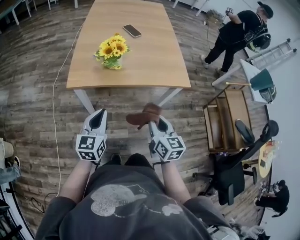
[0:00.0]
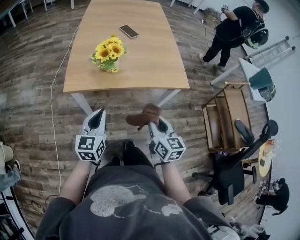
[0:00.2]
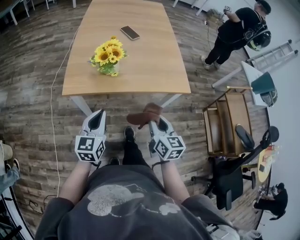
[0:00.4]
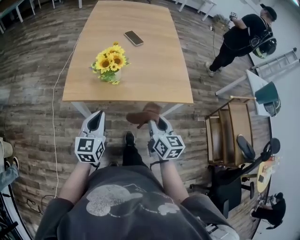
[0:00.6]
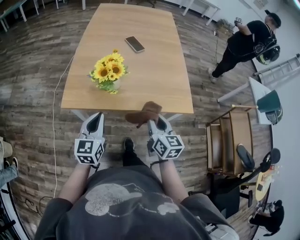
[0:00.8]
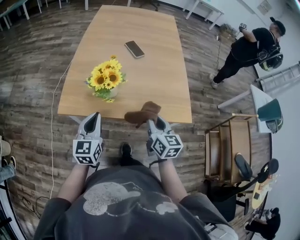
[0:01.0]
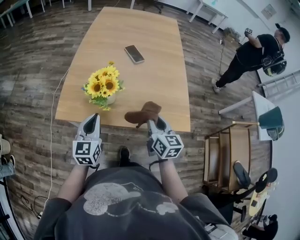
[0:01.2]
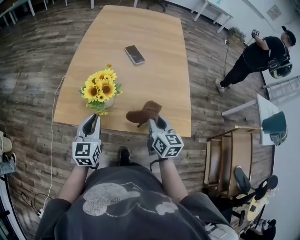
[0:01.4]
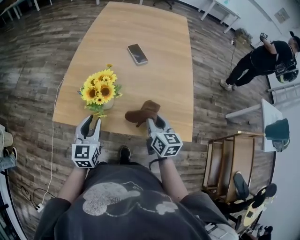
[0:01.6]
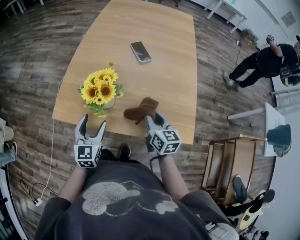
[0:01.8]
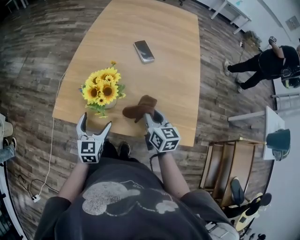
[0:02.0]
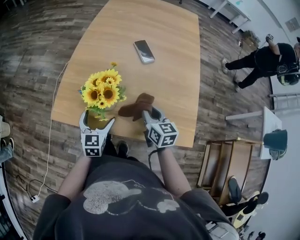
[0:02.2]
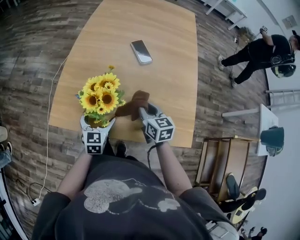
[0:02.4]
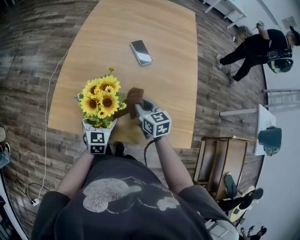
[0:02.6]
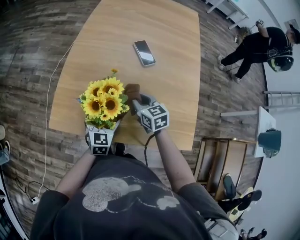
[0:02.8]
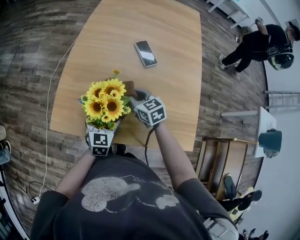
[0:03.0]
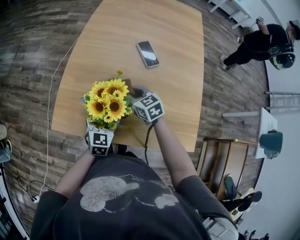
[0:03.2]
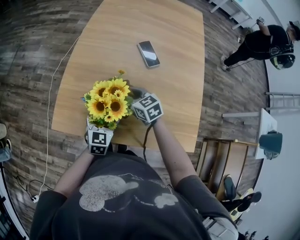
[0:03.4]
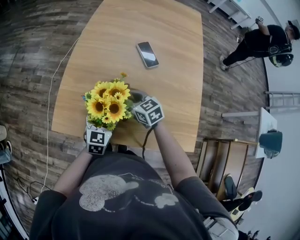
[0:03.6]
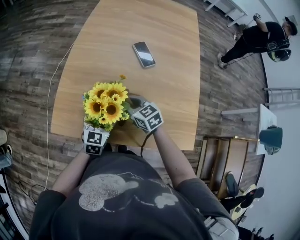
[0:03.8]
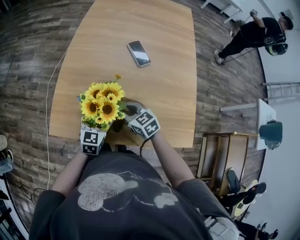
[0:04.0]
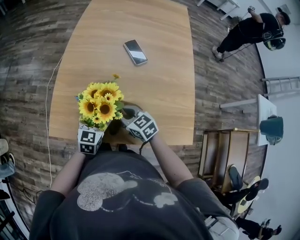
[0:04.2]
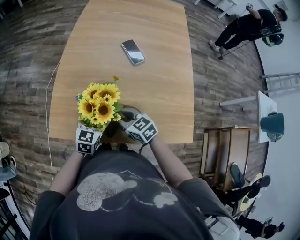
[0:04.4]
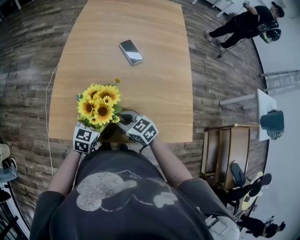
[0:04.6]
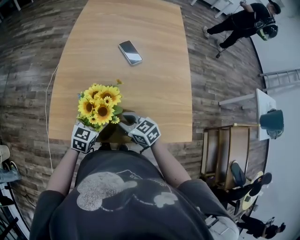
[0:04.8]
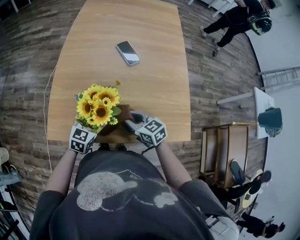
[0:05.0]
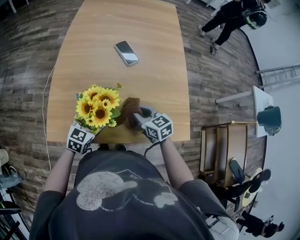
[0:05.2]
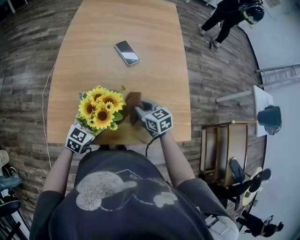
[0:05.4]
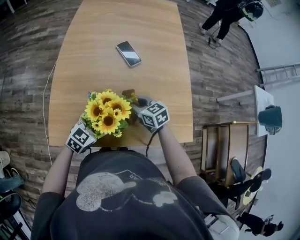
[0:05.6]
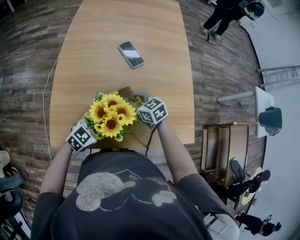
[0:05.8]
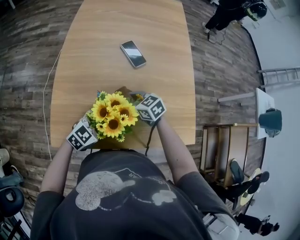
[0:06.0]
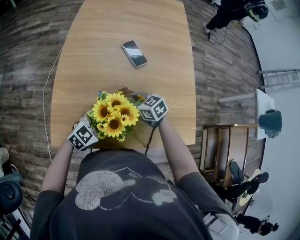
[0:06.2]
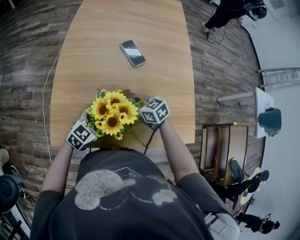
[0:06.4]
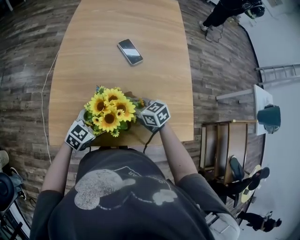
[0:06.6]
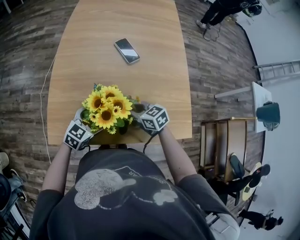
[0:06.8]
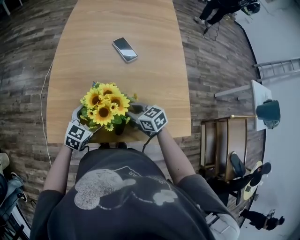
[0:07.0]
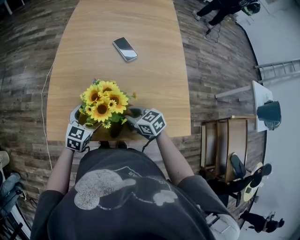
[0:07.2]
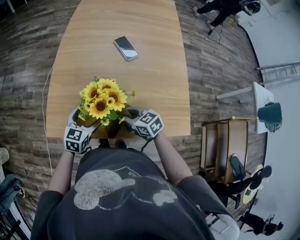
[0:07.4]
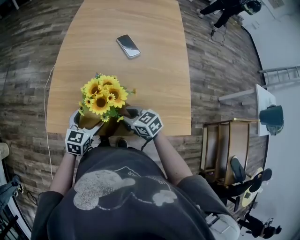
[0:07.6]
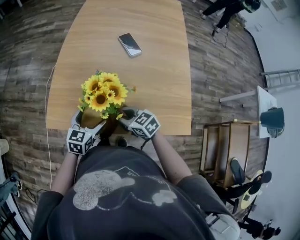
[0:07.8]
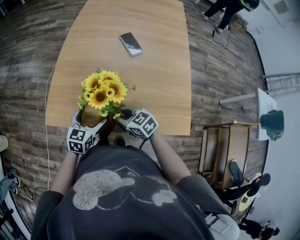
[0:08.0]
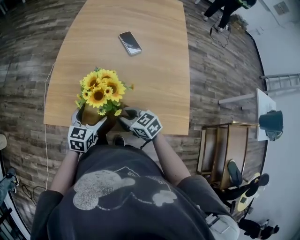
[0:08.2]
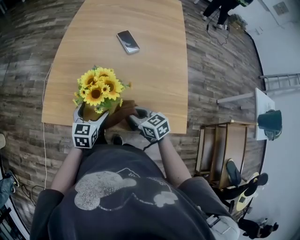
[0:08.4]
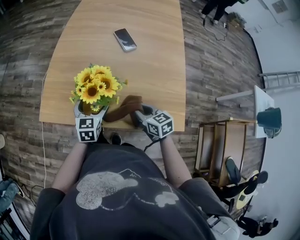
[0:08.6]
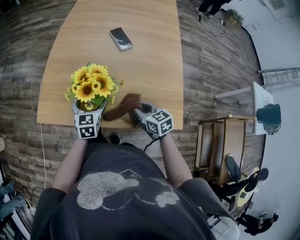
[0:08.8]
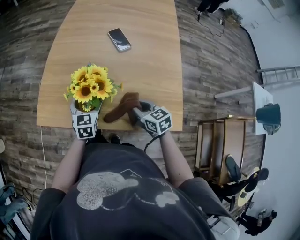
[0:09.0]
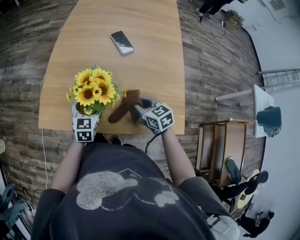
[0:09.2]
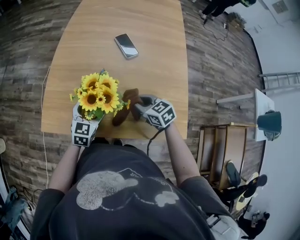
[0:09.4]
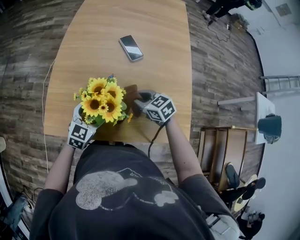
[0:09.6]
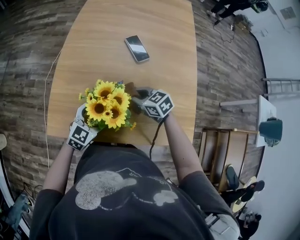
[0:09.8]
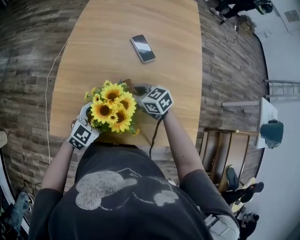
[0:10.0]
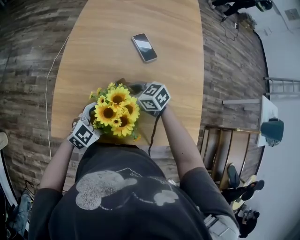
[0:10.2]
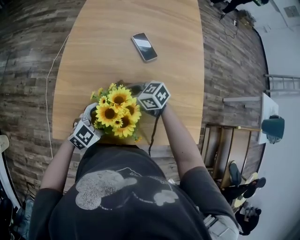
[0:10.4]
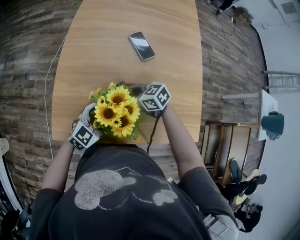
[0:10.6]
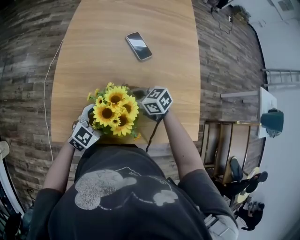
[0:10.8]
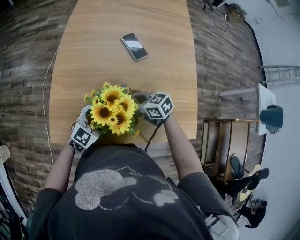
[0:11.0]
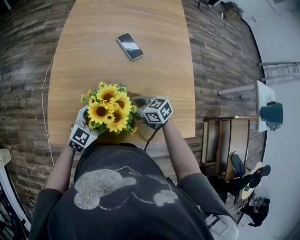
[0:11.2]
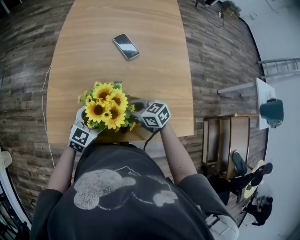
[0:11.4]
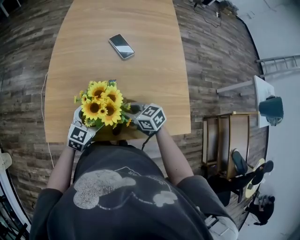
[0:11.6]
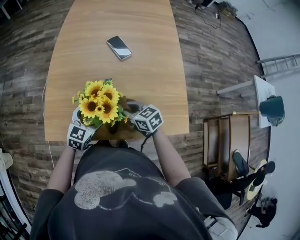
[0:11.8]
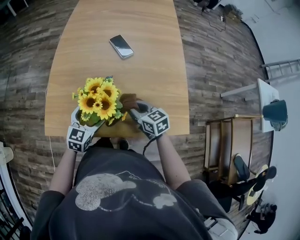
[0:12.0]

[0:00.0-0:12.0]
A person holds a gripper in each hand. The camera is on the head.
0:00.0 to 0:01.6: Both grippers travel together forward, roughly 25 cm.
0:01.6 to 0:03.0: The left gripper goes some 15 cm downward and forward, and opens, while the right gripper travels forward and to the left by roughly 20 cm, and rotates approximately 30 degrees.
0:03.0 to 0:04.4: The right gripper goes some 10 cm backward and to the left.
0:04.4 to 0:06.0: The right gripper shifts by roughly 10 cm. Meanwhile the left gripper turns by some 40 degrees.
0:06.0 to 0:07.6: The left gripper changes place by roughly 5 cm, and rotates some 40 degrees. Meanwhile the right gripper shifts by some 15 cm.
0:07.6 to 0:09.0: The right gripper travels to the right by roughly 10 cm. Meanwhile the left gripper shifts by approximately 5 cm.
0:09.0 to 0:10.4: The right gripper moves some 20 cm, and rotates about 30 degrees. Meanwhile the left gripper rotates some 50 degrees.
0:10.4 to 0:12.0: The left gripper rotates some 30 degrees; the right gripper changes place by some 15 cm, and rotates roughly 30 degrees.

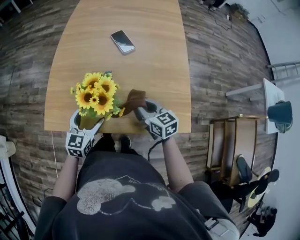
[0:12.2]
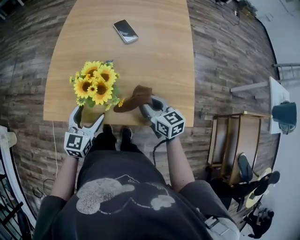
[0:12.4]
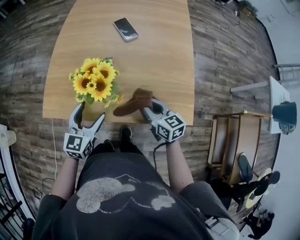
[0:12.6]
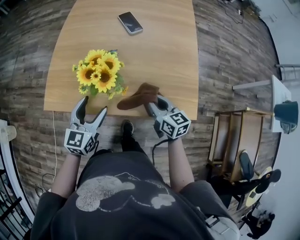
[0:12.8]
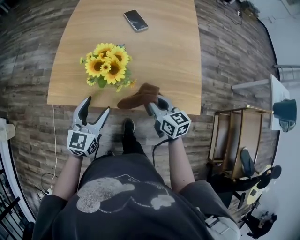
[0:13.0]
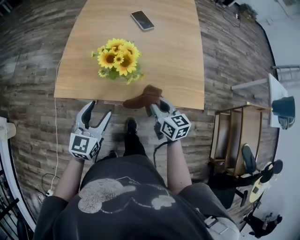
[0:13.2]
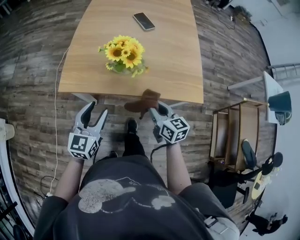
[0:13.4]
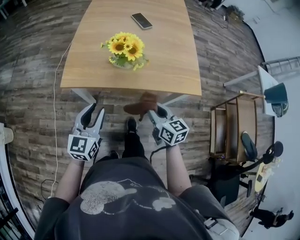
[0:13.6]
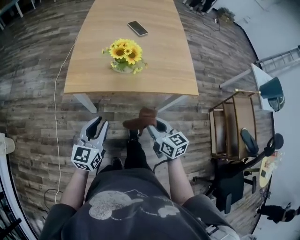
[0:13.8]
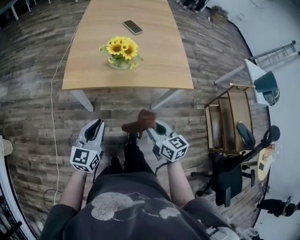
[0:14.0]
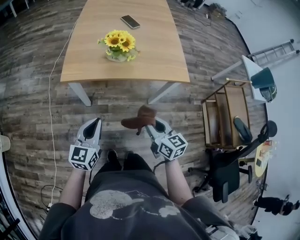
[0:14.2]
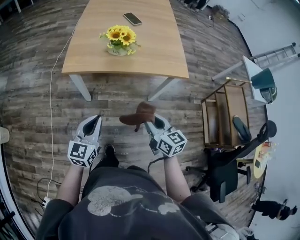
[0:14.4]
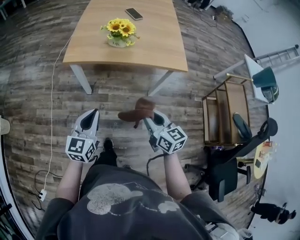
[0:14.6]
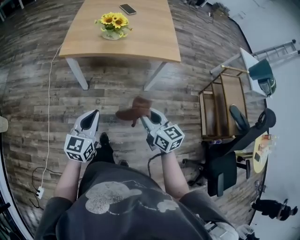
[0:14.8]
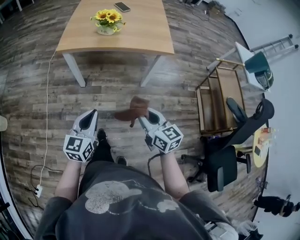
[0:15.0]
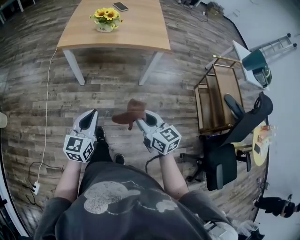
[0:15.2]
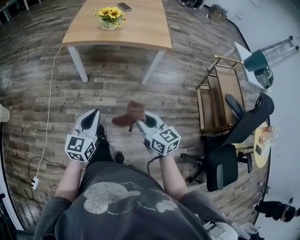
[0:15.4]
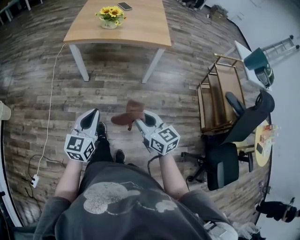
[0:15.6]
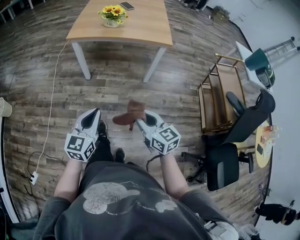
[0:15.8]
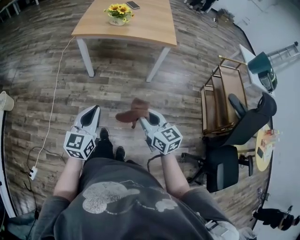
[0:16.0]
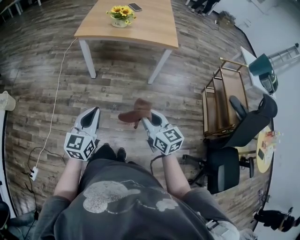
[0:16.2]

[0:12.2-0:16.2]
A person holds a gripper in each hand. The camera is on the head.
0:12.2 to 0:13.6: The right gripper shifts approximately 20 cm backward, while the left gripper is displaced backward and to the left by about 20 cm, and closes.
0:13.6 to 0:14.8: Both grippers travel together backward, approximately 25 cm.
0:14.8 to 0:16.2: The grippers both shift backward by some 20 cm.

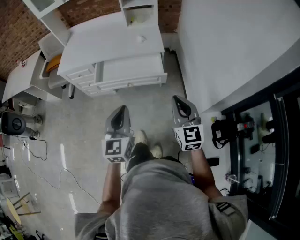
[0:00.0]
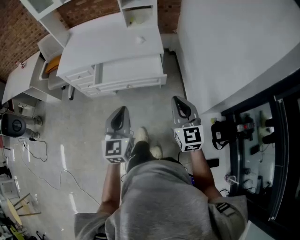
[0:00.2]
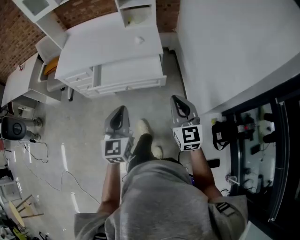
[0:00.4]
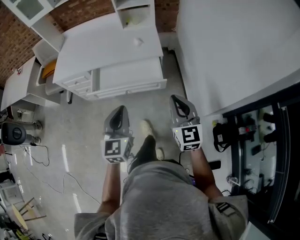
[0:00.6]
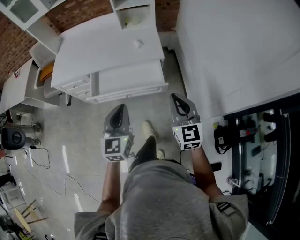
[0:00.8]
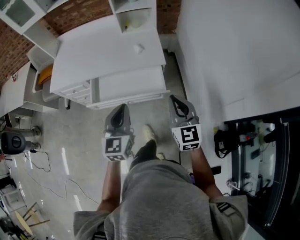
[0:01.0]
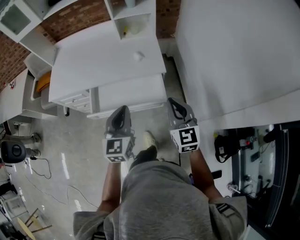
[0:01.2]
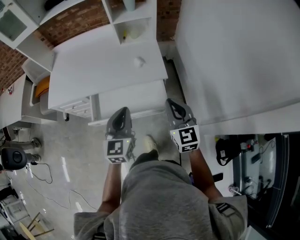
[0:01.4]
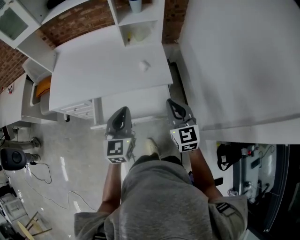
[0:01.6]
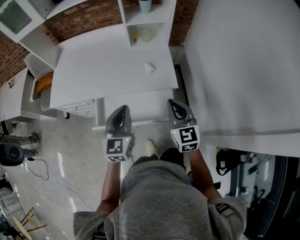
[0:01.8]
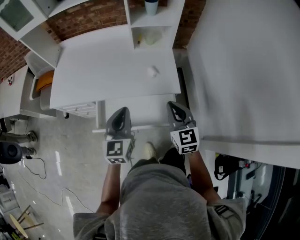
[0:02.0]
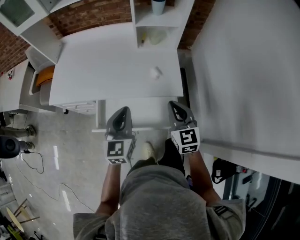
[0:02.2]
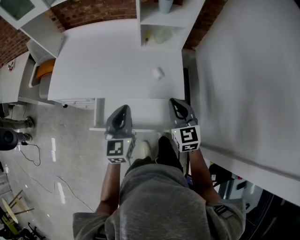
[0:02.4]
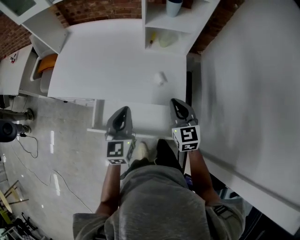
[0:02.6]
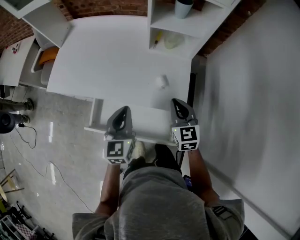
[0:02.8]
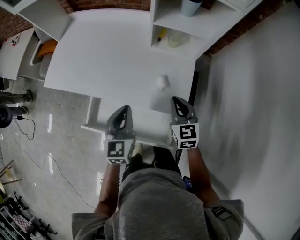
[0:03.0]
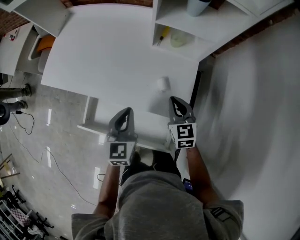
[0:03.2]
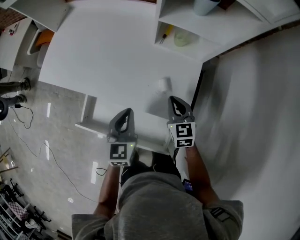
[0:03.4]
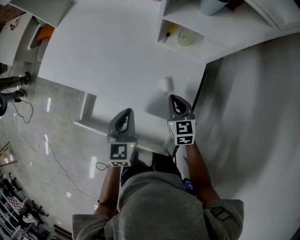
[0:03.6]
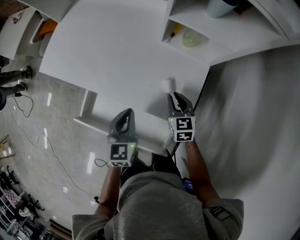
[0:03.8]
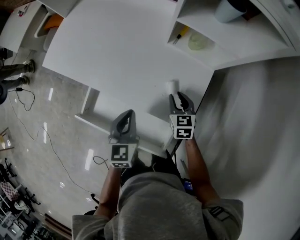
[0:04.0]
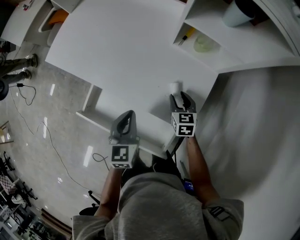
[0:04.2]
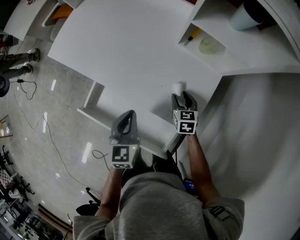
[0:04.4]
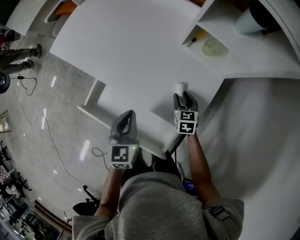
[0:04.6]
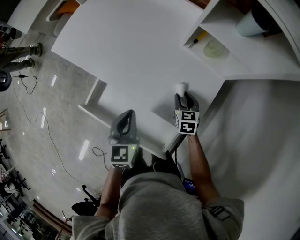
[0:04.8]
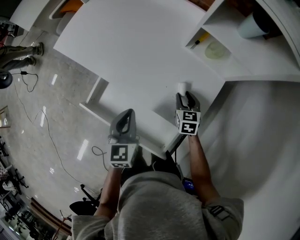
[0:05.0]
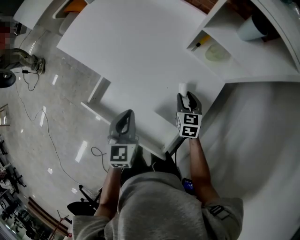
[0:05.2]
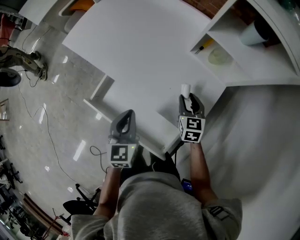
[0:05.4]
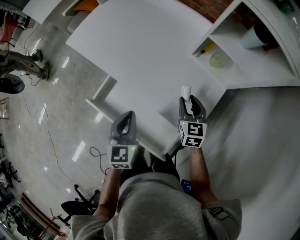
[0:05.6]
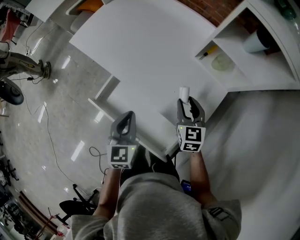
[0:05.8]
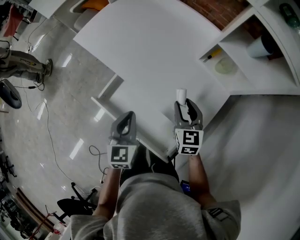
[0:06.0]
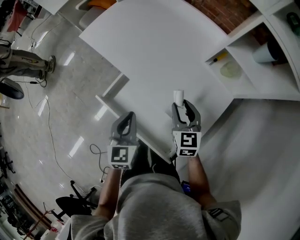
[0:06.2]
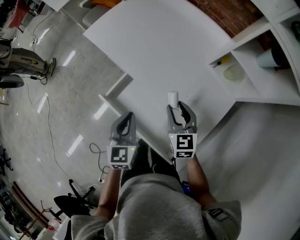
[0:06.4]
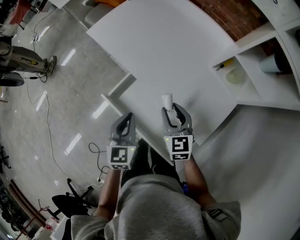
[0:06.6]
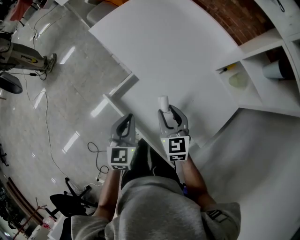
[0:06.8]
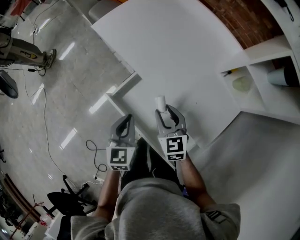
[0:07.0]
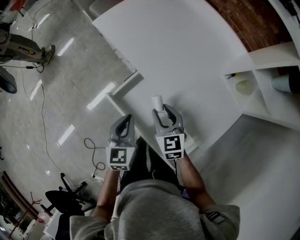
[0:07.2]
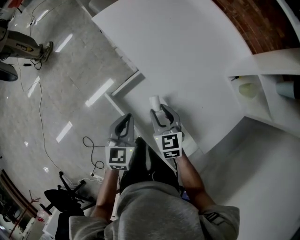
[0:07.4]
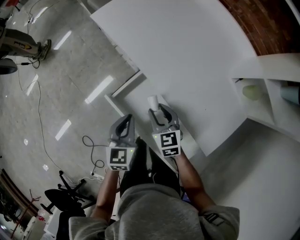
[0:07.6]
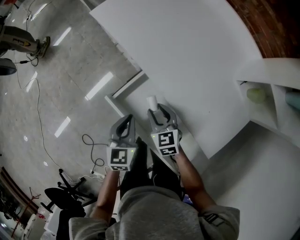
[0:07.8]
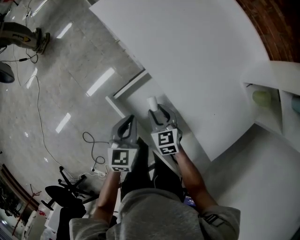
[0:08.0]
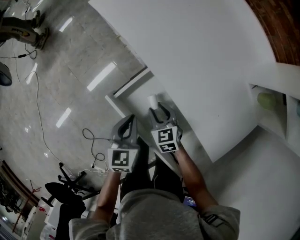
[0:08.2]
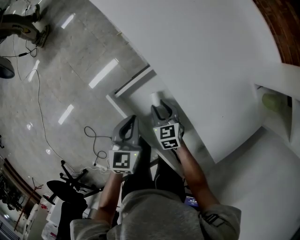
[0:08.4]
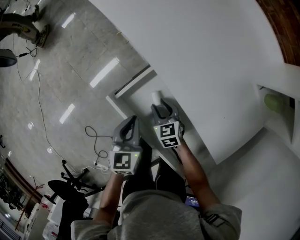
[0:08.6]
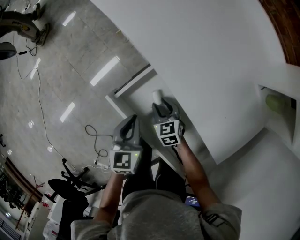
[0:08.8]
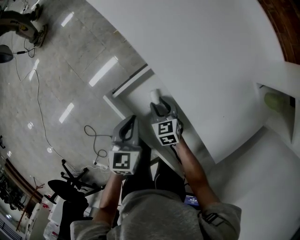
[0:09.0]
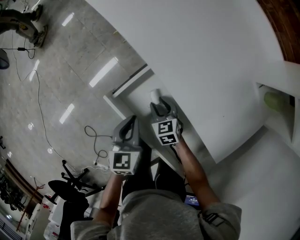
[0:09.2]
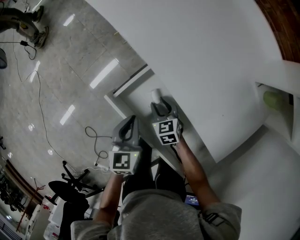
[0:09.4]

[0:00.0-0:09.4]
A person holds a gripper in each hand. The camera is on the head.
0:00.0 to 0:01.6: The two grippers go about 35 cm forward.
0:01.6 to 0:03.2: The two grippers go about 30 cm forward and downward. The right gripper rotates about 20 degrees, while the left gripper rotates roughly 20 degrees.
0:03.2 to 0:04.8: The right gripper heads downward and forward, covering about 15 cm, and opens its fingers. Meanwhile the left gripper heads downward, covering some 5 cm.
0:04.8 to 0:06.2: The left gripper goes roughly 10 cm to the left. The right gripper travels upward and to the left by about 20 cm, and turns by approximately 20 degrees.
0:06.2 to 0:07.8: The left gripper goes some 15 cm downward and to the left. The right gripper moves to the left and downward, roughly 25 cm, and turns by approximately 30 degrees.
0:07.8 to 0:09.4: The right gripper goes some 10 cm downward.
